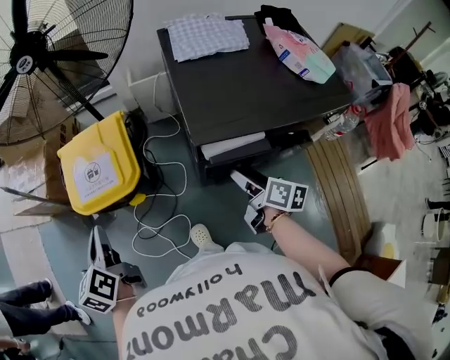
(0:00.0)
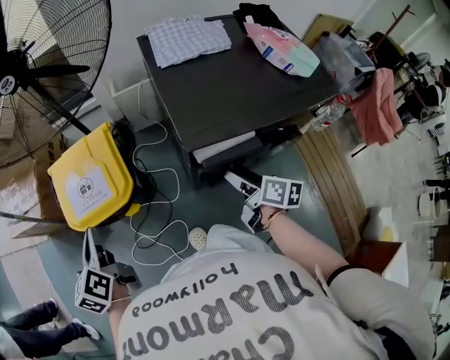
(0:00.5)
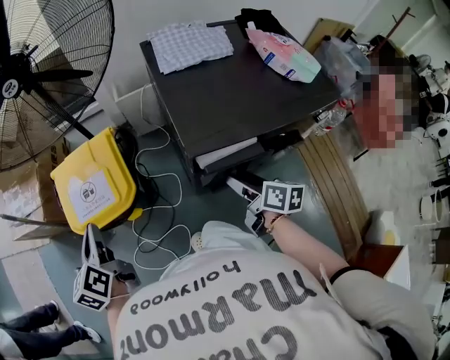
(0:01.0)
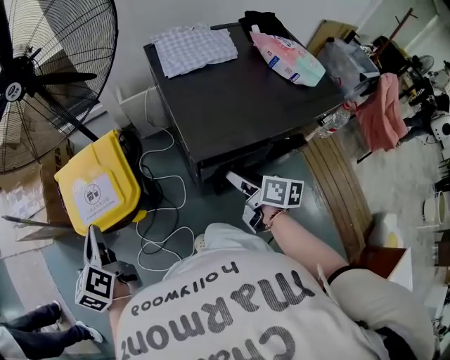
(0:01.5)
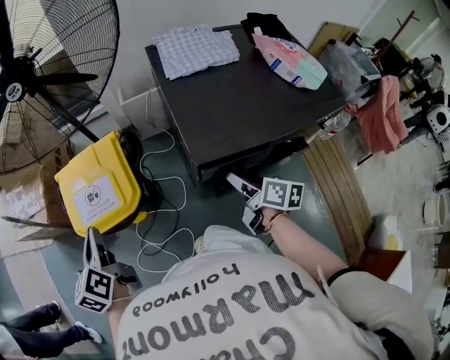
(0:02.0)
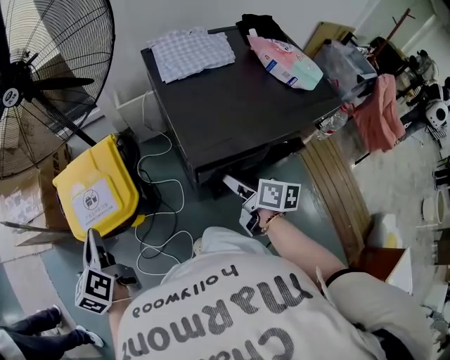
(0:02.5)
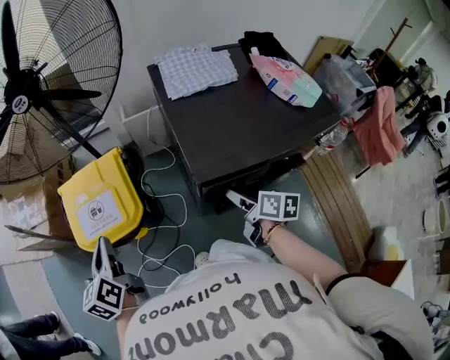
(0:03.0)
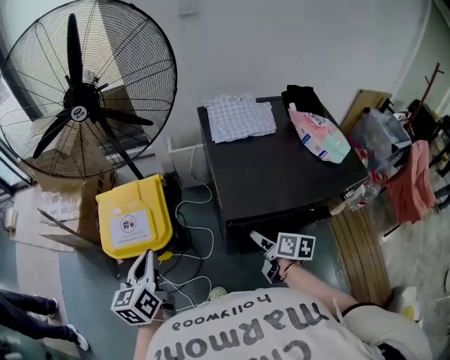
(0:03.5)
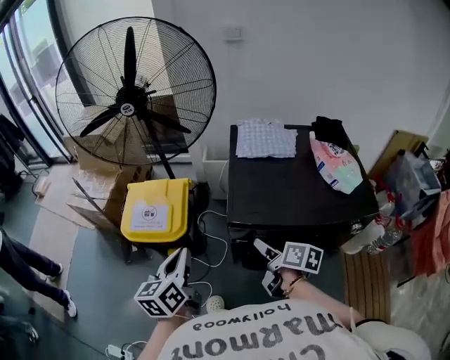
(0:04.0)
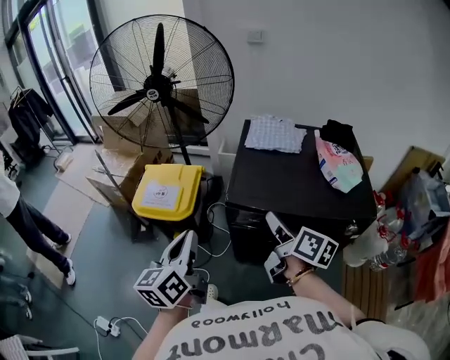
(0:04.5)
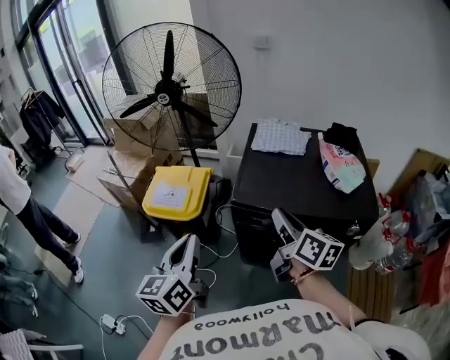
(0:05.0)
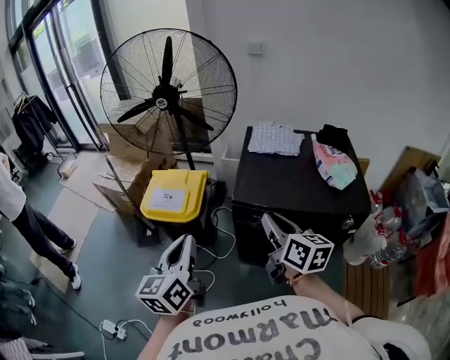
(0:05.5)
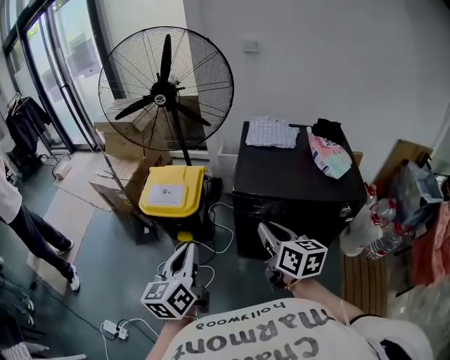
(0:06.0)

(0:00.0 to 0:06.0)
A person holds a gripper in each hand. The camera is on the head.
0:00.0 - 0:02.0: The left gripper travels forward by approximately 5 cm.
0:02.0 - 0:04.0: The left gripper moves to the right and backward, some 20 cm; the right gripper heads upward, covering about 5 cm.
0:04.0 - 0:06.0: The left gripper travels backward and upward by approximately 20 cm; the right gripper shifts approximately 20 cm upward and backward, rotates about 30 degrees, and closes.

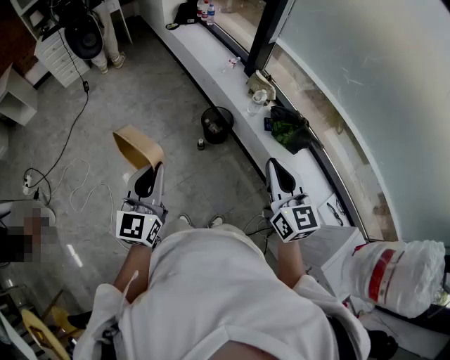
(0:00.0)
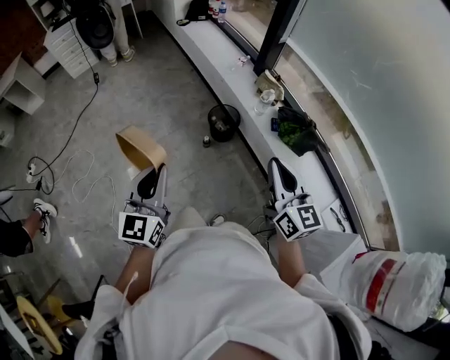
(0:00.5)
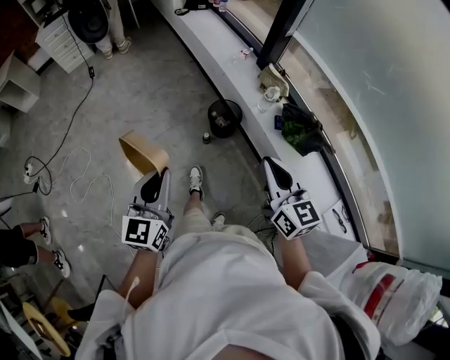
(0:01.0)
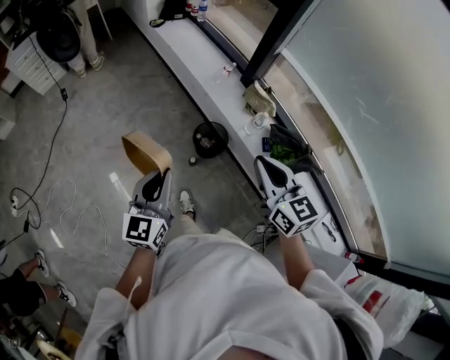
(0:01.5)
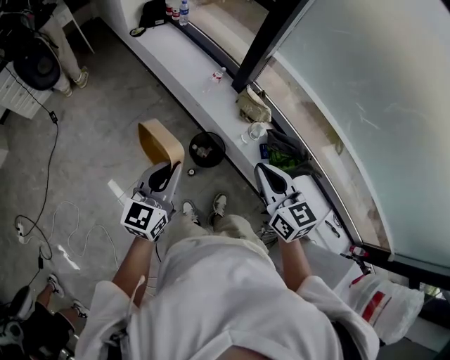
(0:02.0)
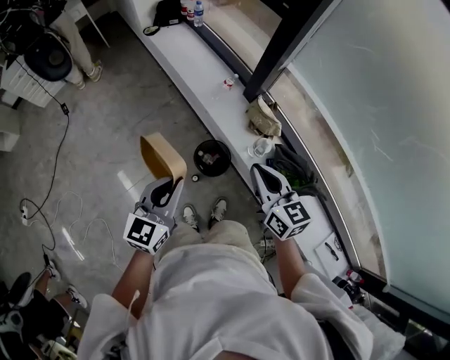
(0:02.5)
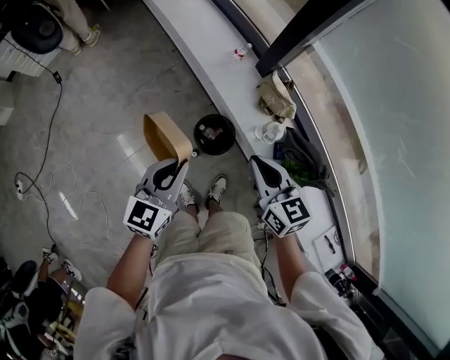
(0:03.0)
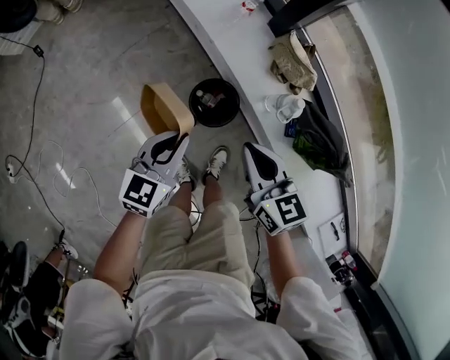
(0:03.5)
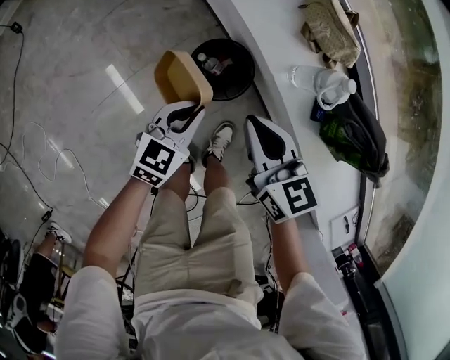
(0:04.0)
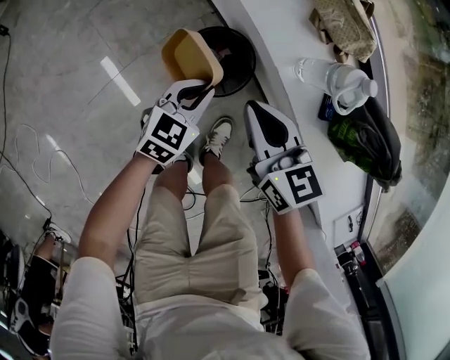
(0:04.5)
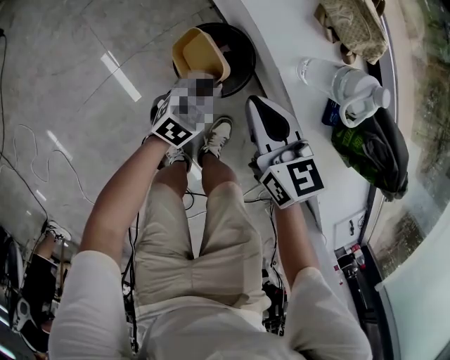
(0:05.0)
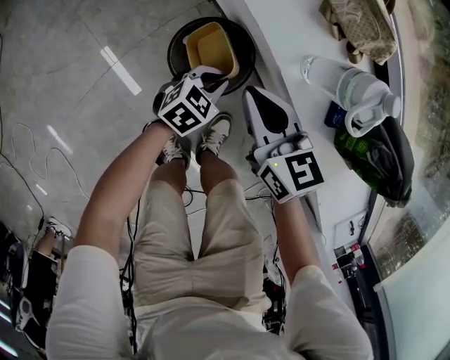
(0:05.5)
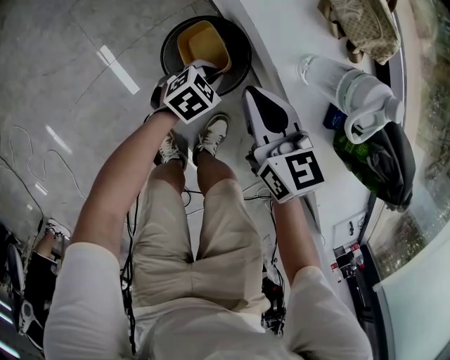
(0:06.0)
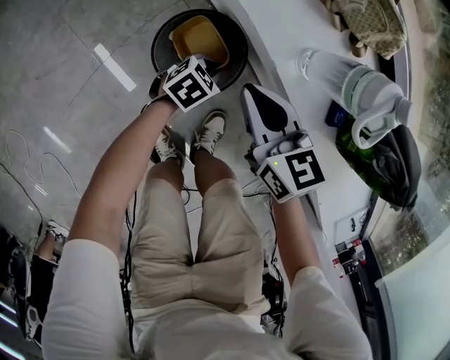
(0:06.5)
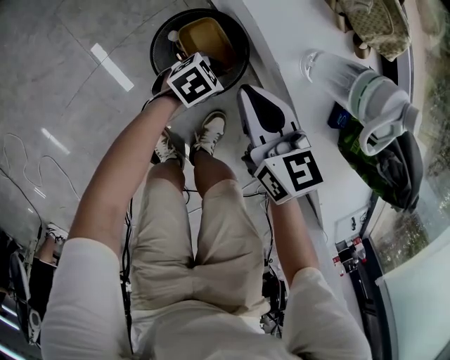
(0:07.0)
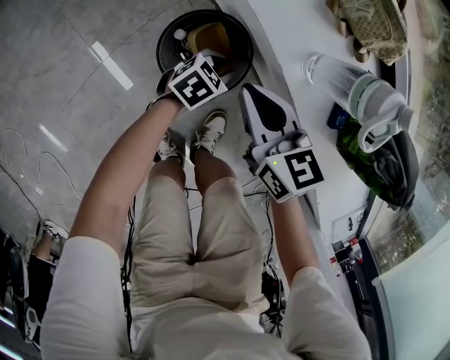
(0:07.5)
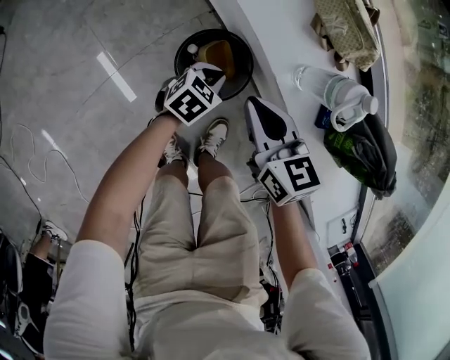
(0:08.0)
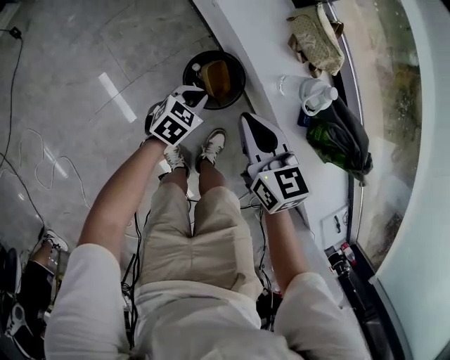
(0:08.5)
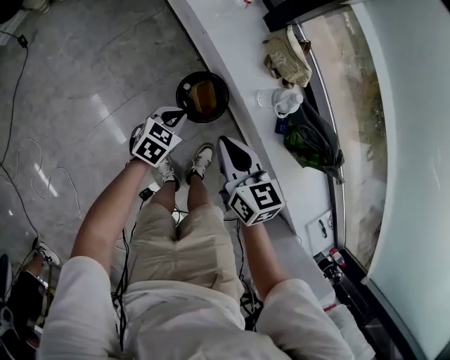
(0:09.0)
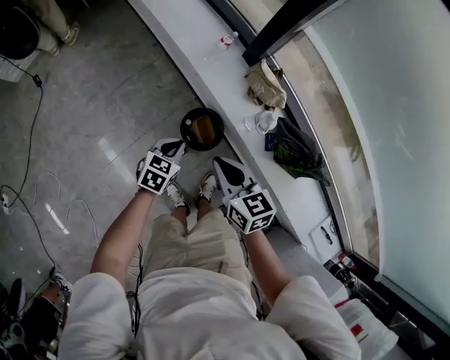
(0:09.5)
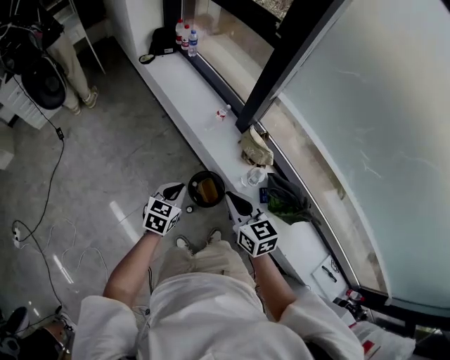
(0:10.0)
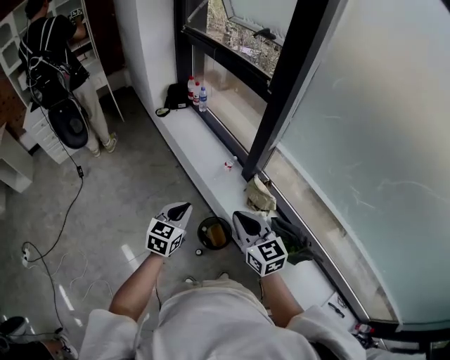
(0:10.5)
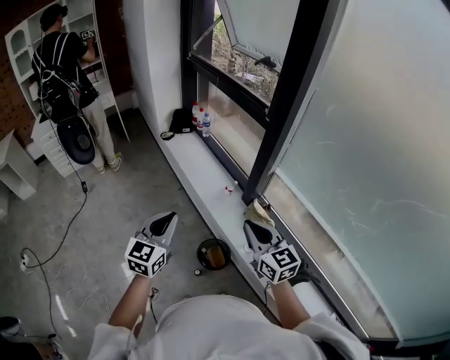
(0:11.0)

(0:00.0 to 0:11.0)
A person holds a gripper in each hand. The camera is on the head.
0:00.0 - 0:02.0: The grippers both shift forward by roughly 35 cm. The left gripper swivels about 20 degrees.
0:02.0 - 0:03.5: The left gripper goes about 25 cm downward, and rotates about 20 degrees. Meanwhile the right gripper shifts approximately 30 cm downward and forward.
0:03.5 - 0:05.5: The two grippers go approximately 35 cm downward. The left gripper rotates roughly 30 degrees.
0:05.5 - 0:07.5: The left gripper heads downward, covering approximately 5 cm.
0:07.5 - 0:09.0: The right gripper goes approximately 25 cm upward, while the left gripper goes some 35 cm upward and to the left, changes its angle by about 20 degrees, and closes its fingers.
0:09.0 - 0:11.0: The grippers both shift upward by some 50 cm. The left gripper angles its fingers upward, by some 40 degrees, while the right gripper rotates some 30 degrees.

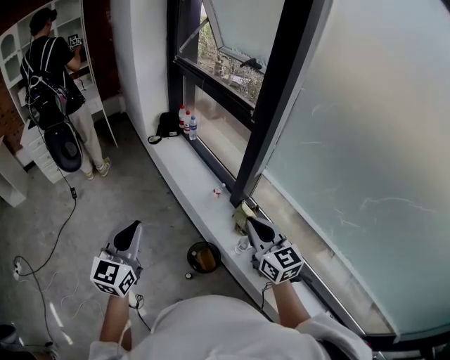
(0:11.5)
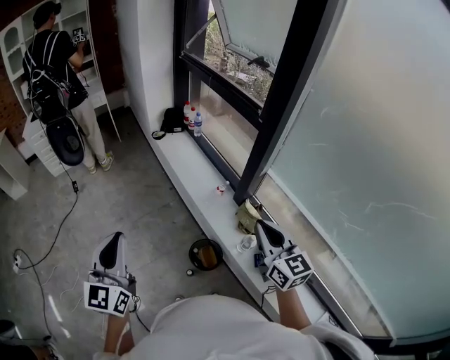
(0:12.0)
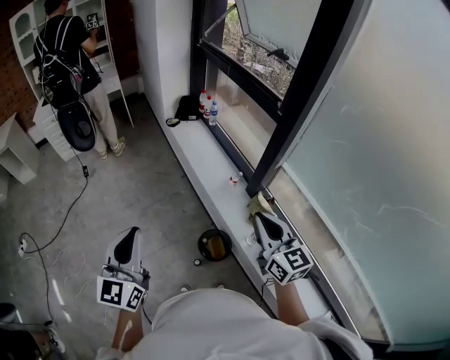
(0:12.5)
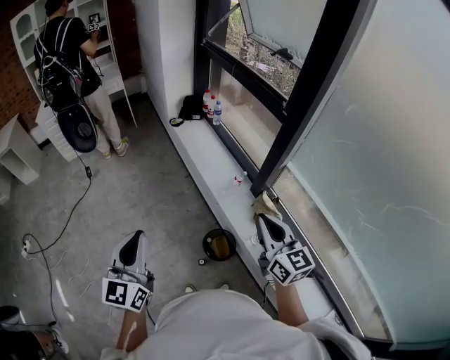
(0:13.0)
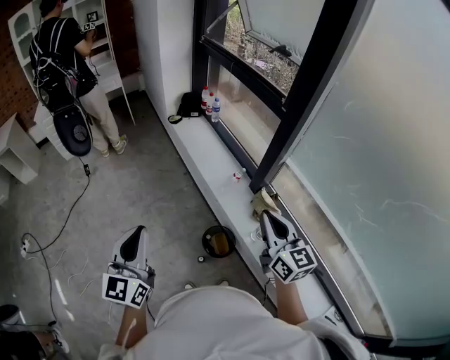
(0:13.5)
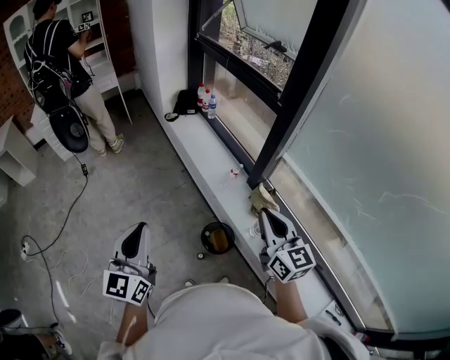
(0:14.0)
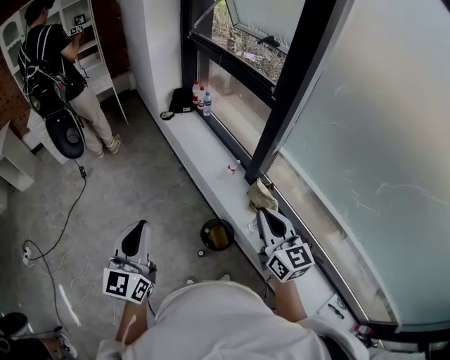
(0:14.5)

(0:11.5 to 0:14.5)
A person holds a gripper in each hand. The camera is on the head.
0:11.5 - 0:13.0: The left gripper travels to the left and backward by approximately 10 cm; the right gripper travels to the left by about 5 cm.
0:13.0 - 0:14.5: The grippers make only small movements.

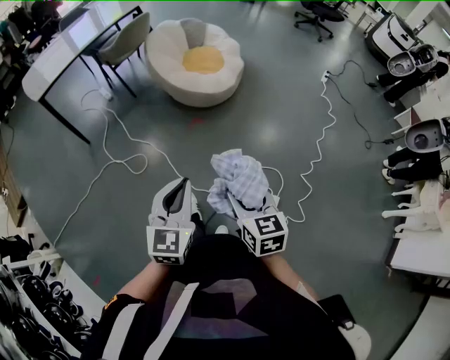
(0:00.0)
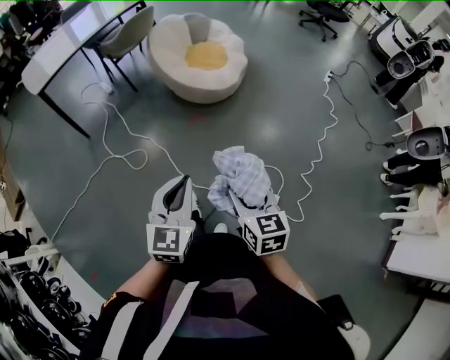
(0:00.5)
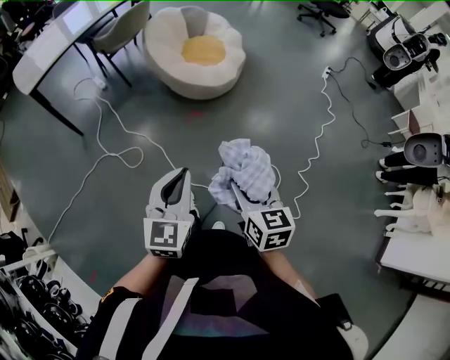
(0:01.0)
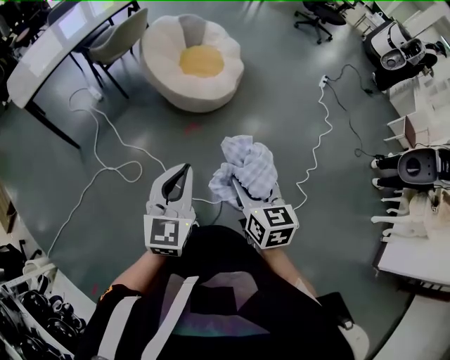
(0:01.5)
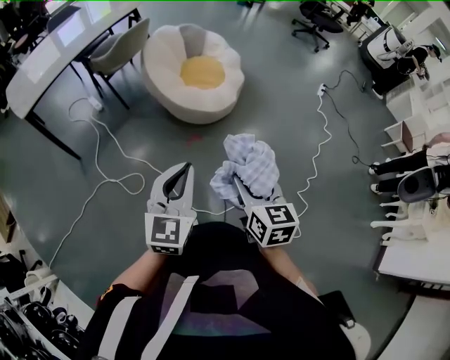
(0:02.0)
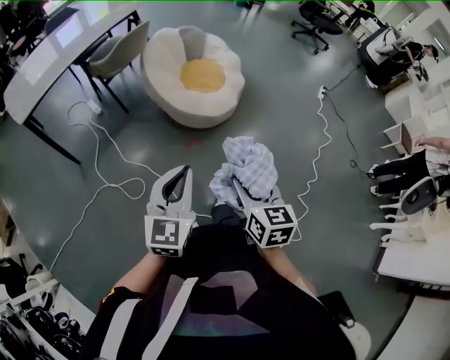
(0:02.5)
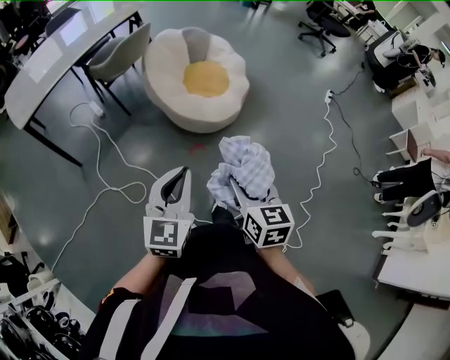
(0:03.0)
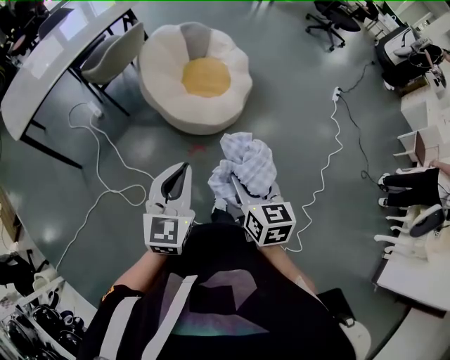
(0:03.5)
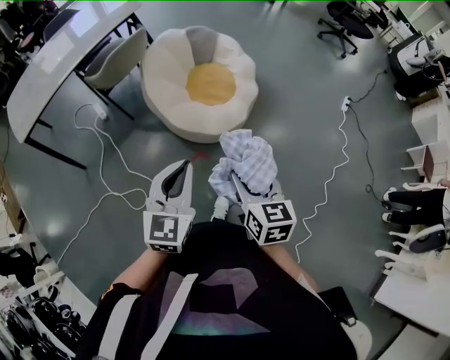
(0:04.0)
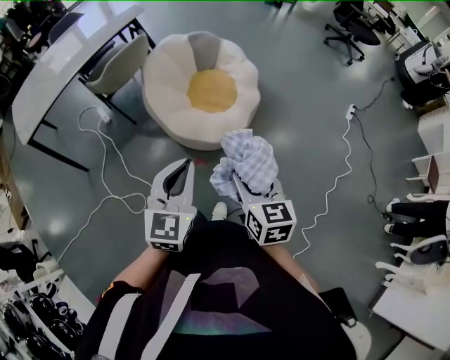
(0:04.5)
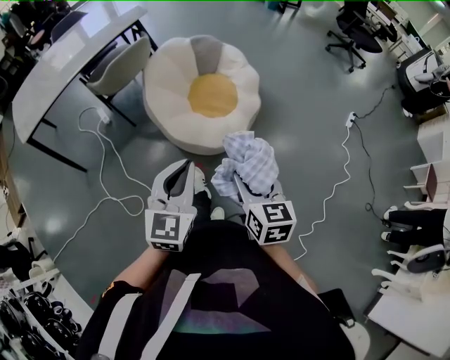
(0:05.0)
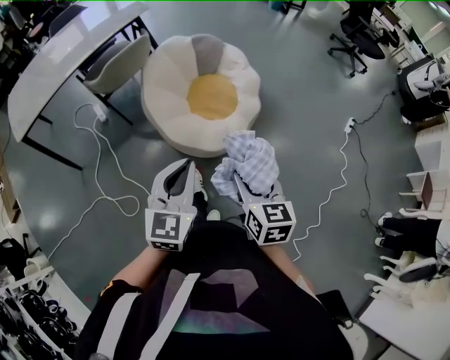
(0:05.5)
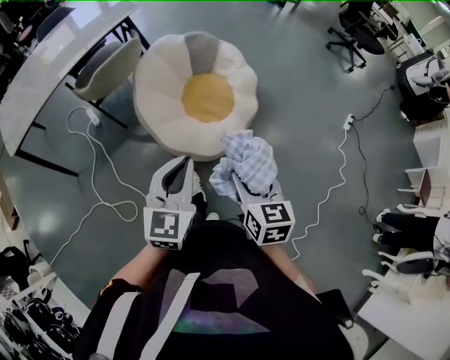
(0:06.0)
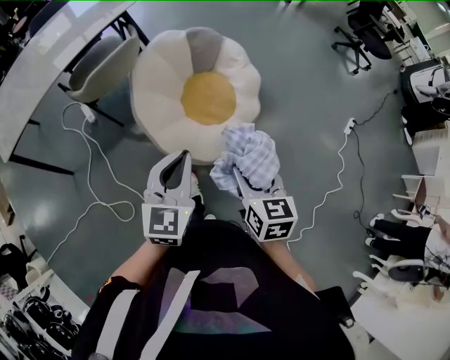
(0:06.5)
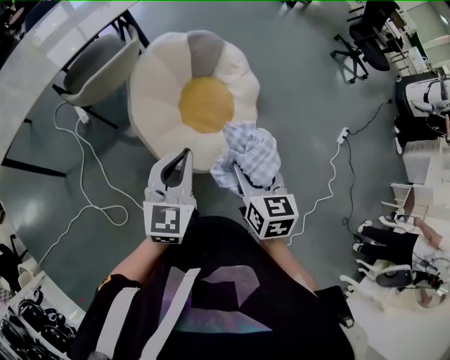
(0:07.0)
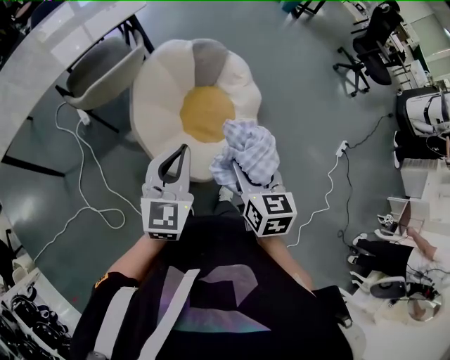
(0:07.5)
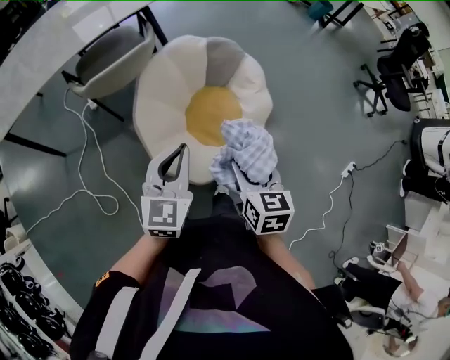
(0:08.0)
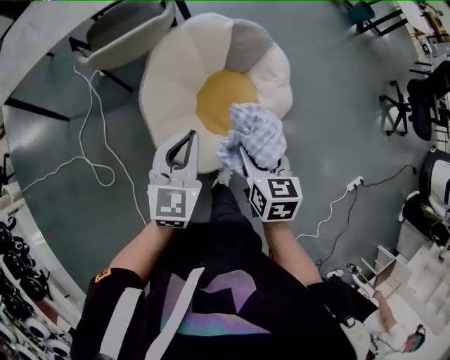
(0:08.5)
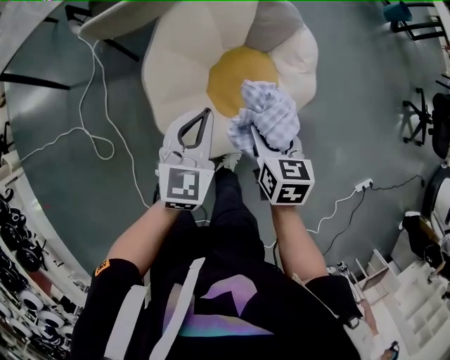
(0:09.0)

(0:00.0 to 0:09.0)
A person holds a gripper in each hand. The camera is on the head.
0:00.0 - 0:02.0: Both grippers travel together forward, approximately 20 cm.
0:02.0 - 0:04.5: The grippers both shift forward by roughly 30 cm.
0:04.5 - 0:07.0: The grippers both shift forward by approximately 30 cm.
0:07.0 - 0:09.0: The left gripper moves approximately 25 cm, and changes its angle by about 20 degrees, while the right gripper moves approximately 30 cm, and rotates some 30 degrees.
